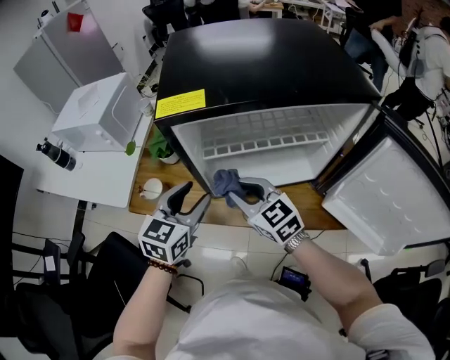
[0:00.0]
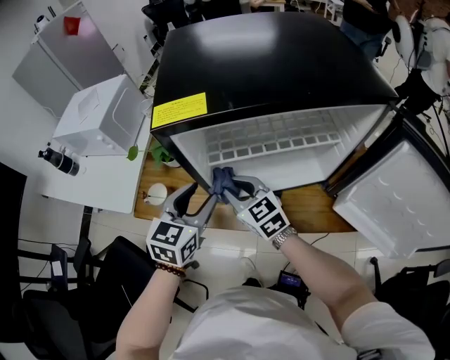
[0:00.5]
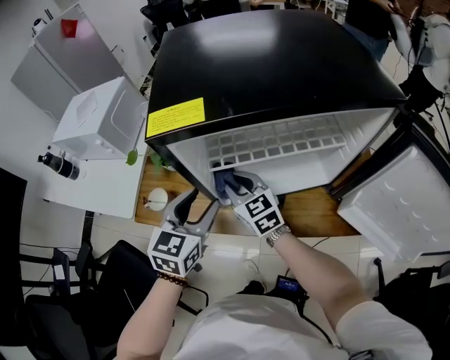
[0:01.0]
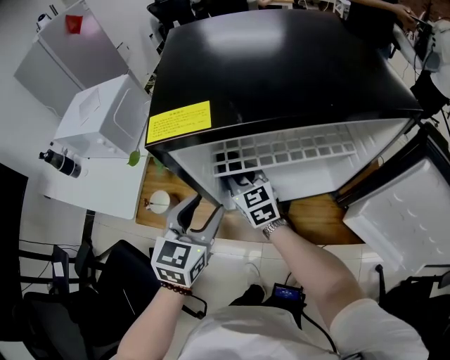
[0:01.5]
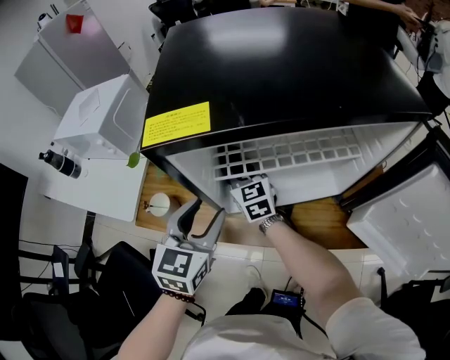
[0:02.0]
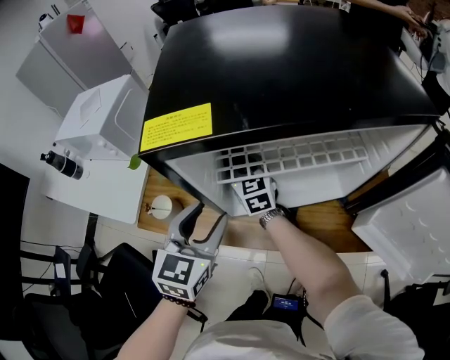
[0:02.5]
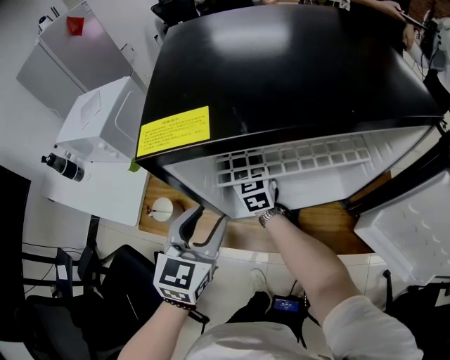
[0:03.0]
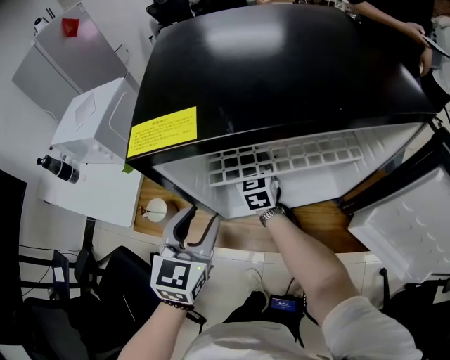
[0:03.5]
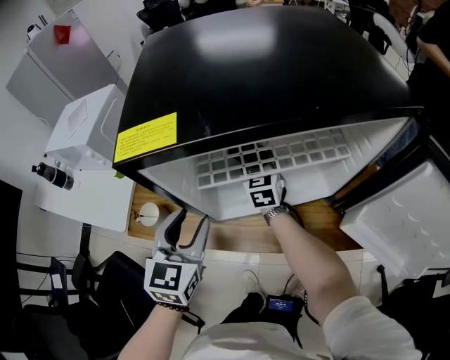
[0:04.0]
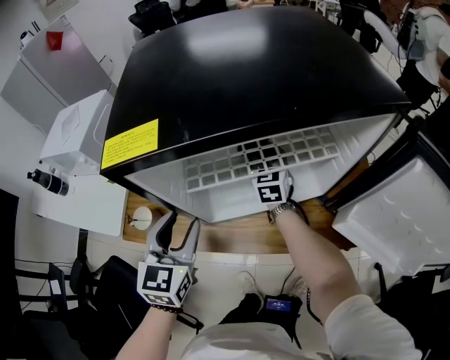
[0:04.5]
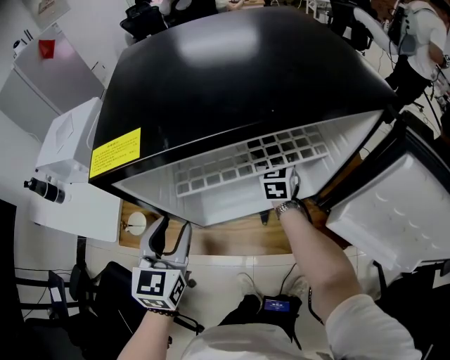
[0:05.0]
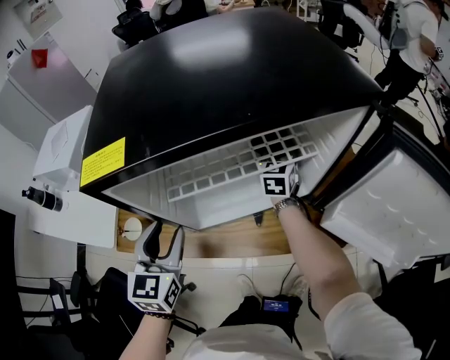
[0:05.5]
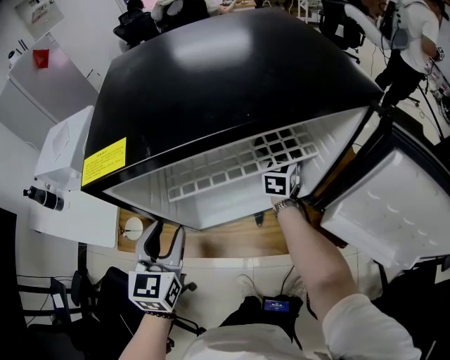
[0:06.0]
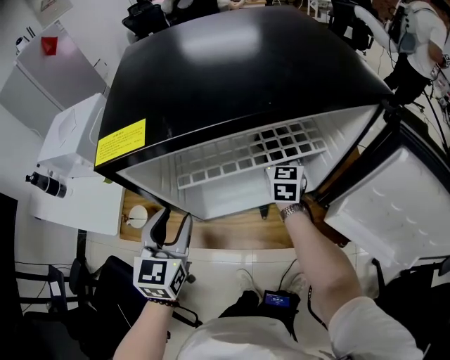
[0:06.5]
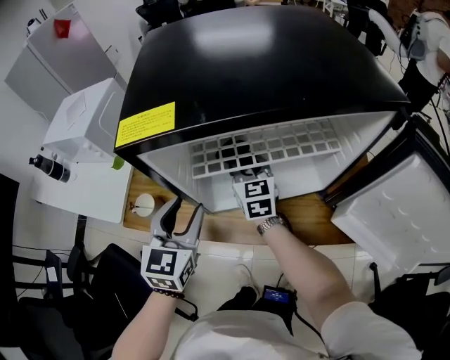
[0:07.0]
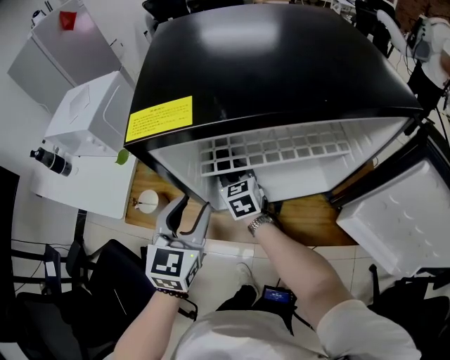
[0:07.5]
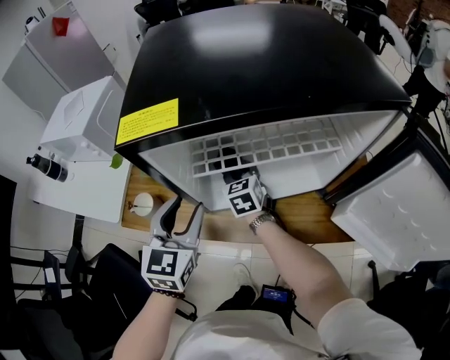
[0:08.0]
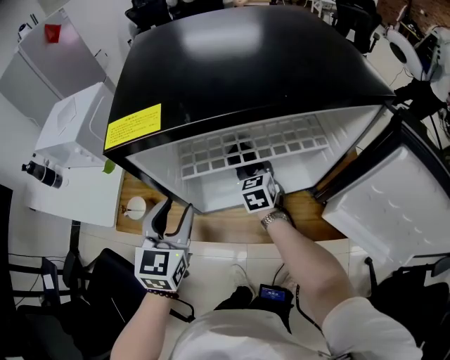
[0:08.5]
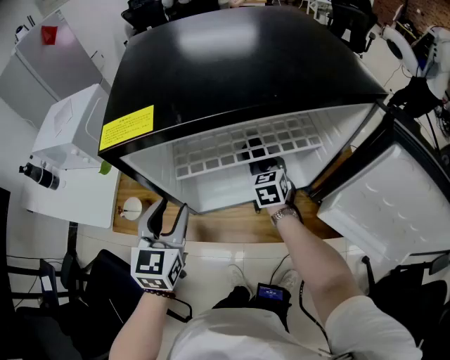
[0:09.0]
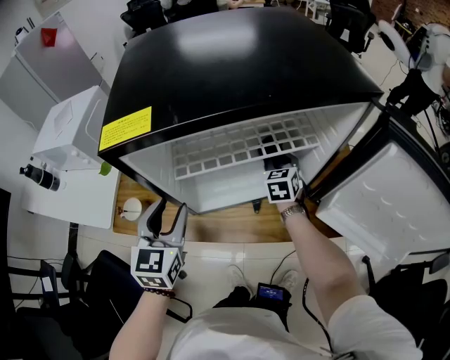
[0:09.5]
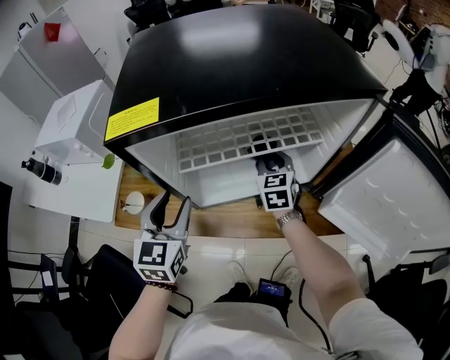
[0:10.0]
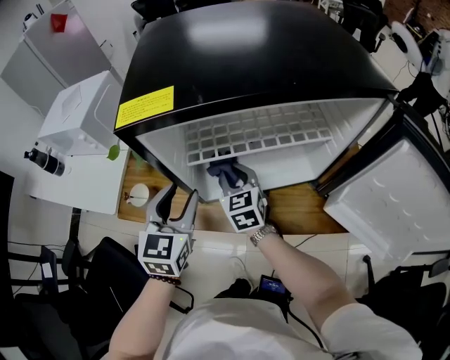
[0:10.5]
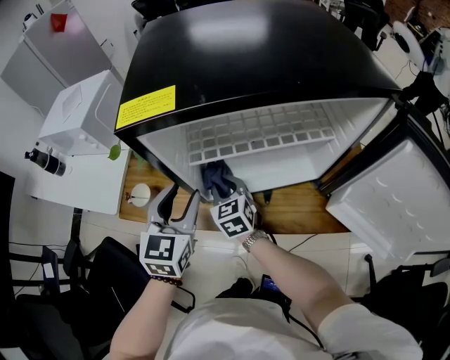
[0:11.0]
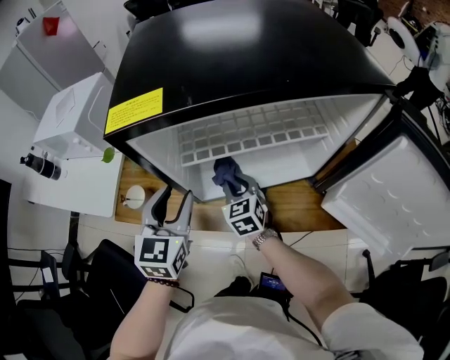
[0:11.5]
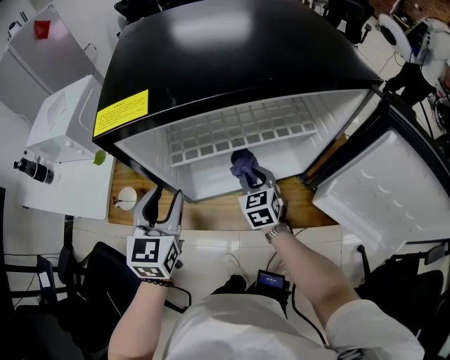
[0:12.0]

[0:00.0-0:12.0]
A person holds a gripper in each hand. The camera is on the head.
0:00.0 to 0:02.0: The right gripper shifts approximately 20 cm forward and downward.
0:02.0 to 0:04.0: The right gripper moves to the right and forward, roughly 10 cm.
0:04.0 to 0:06.0: The right gripper travels to the right by approximately 20 cm, and turns by roughly 20 degrees.
0:06.0 to 0:08.0: The right gripper moves to the left, approximately 20 cm, and changes its angle by roughly 30 degrees.
0:08.0 to 0:10.0: The right gripper travels to the right by about 15 cm.
0:10.0 to 0:12.0: The right gripper is displaced backward by roughly 5 cm, and goes to the left and returns, some 20 cm each way.

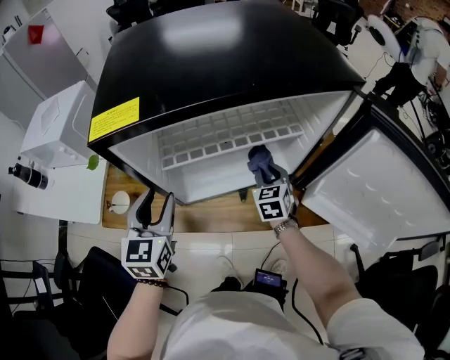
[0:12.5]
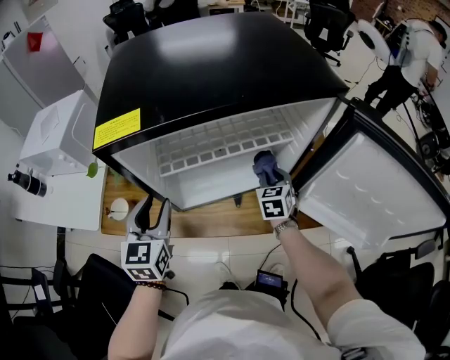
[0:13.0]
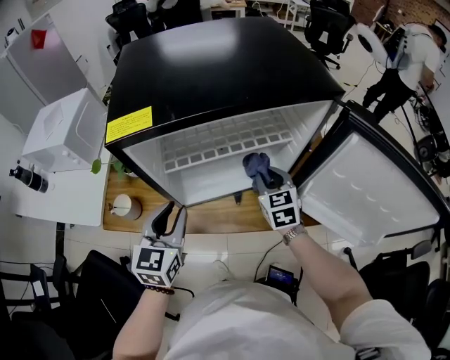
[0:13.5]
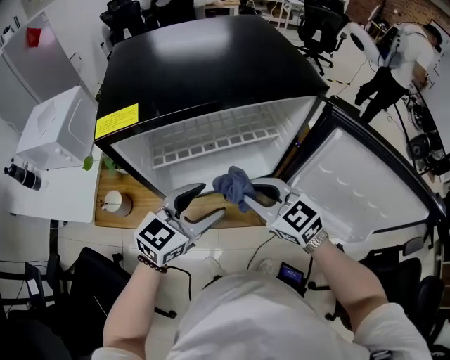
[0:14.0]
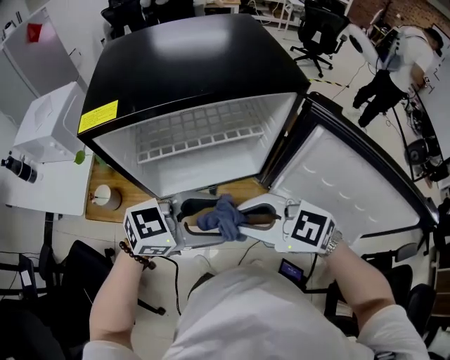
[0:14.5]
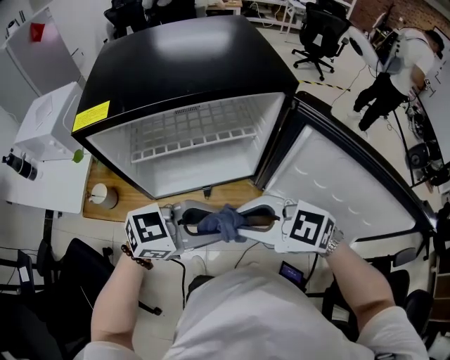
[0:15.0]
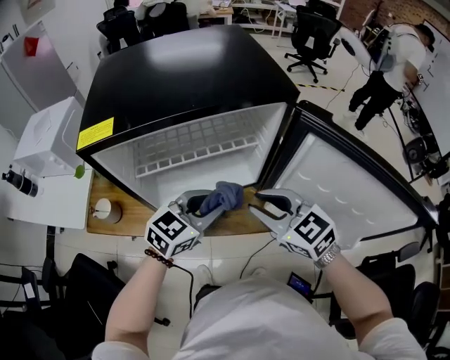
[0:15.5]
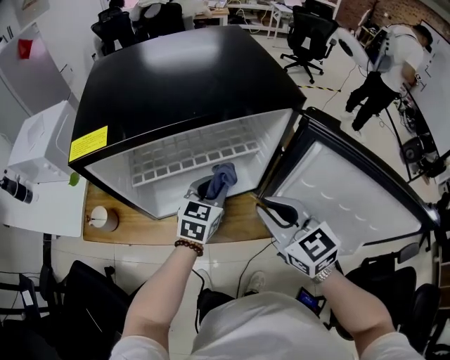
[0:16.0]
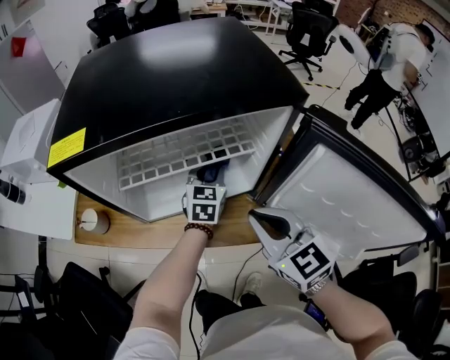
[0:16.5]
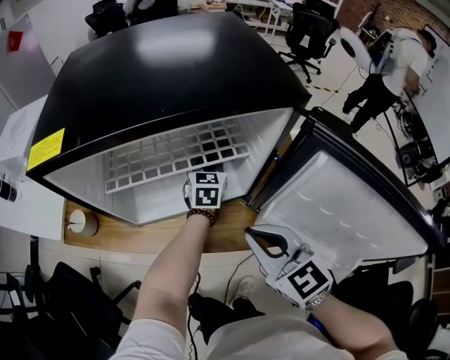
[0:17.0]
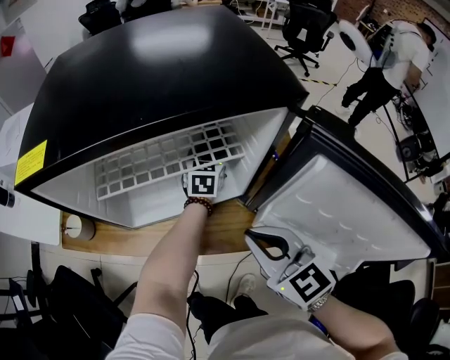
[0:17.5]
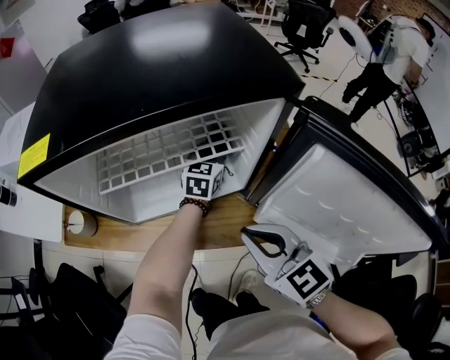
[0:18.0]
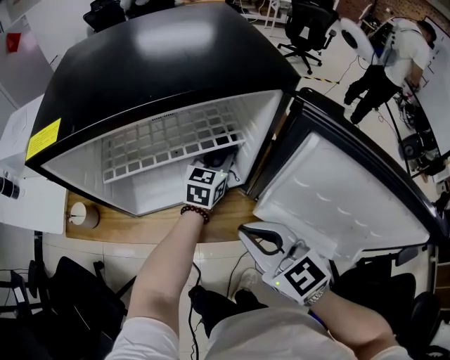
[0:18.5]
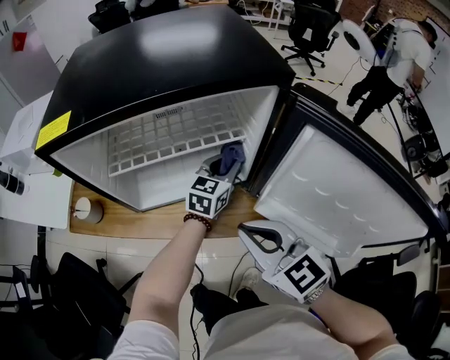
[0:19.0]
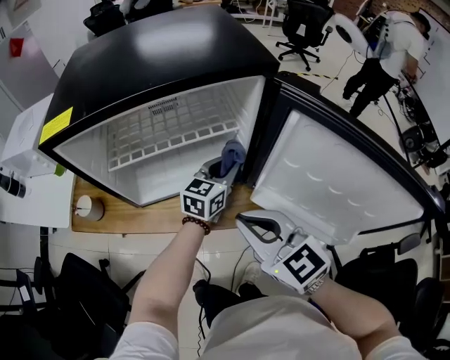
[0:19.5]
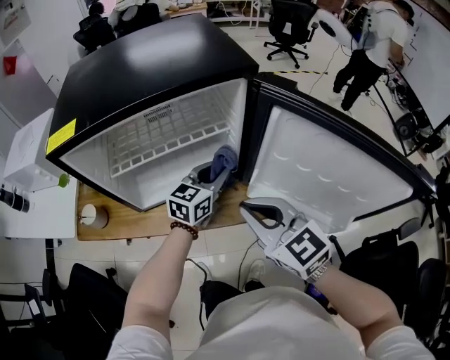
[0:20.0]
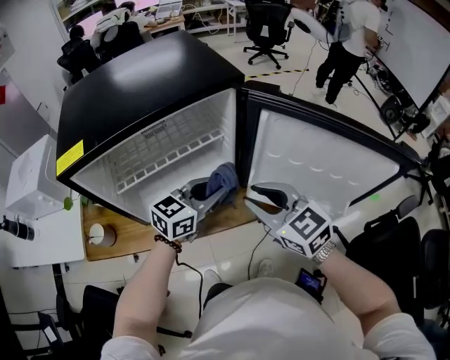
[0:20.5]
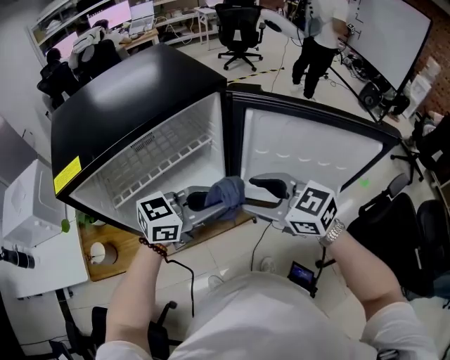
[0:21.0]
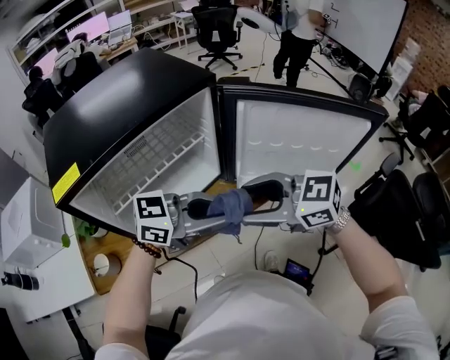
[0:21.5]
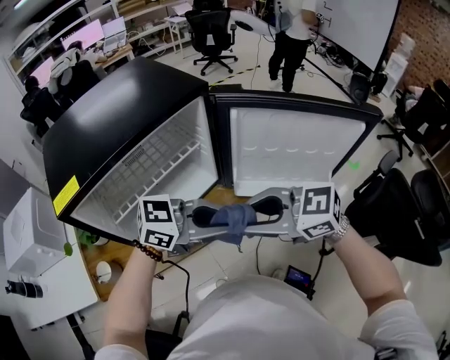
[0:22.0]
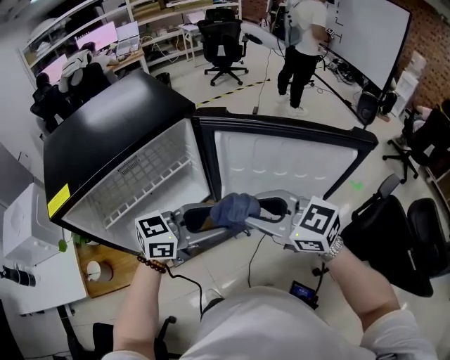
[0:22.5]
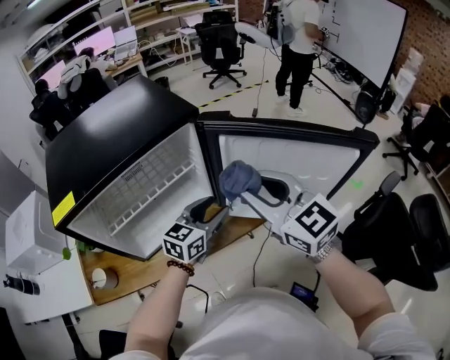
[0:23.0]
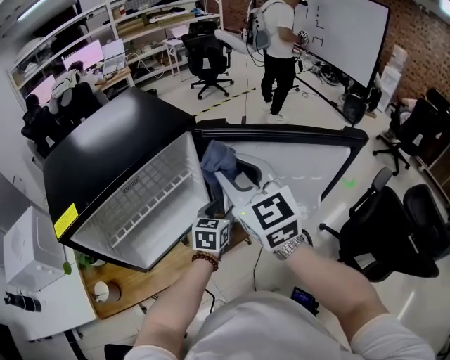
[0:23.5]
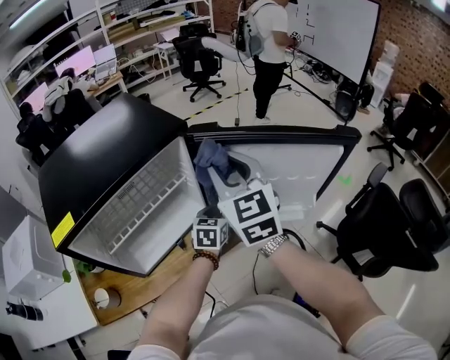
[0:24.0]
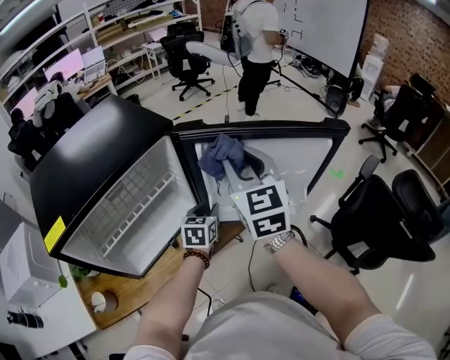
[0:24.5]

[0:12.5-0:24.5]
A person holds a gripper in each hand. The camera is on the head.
0:12.5 to 0:14.5: The left gripper moves roughly 25 cm, rotates approximately 70 degrees, and opens up. Meanwhile the right gripper shifts by about 30 cm, and changes its angle by about 70 degrees.
0:14.5 to 0:16.5: The left gripper moves about 30 cm, rotates approximately 60 degrees, and closes, while the right gripper changes place by approximately 10 cm, and changes its angle by roughly 40 degrees.
0:16.5 to 0:18.5: The left gripper travels to the right by roughly 5 cm, and goes forward and returns, some 10 cm each way.
0:18.5 to 0:20.5: The right gripper opens its fingers. The left gripper heads backward and upward, covering about 20 cm, and turns by roughly 30 degrees.
0:20.5 to 0:22.5: The left gripper changes place by some 10 cm, changes its angle by approximately 30 degrees, and opens up. The right gripper shifts by some 10 cm, and opens, then closes again.
0:22.5 to 0:24.5: The right gripper shifts by some 15 cm, and changes its angle by approximately 50 degrees, while the left gripper heads downward, covering about 15 cm, swivels about 40 degrees, and closes.

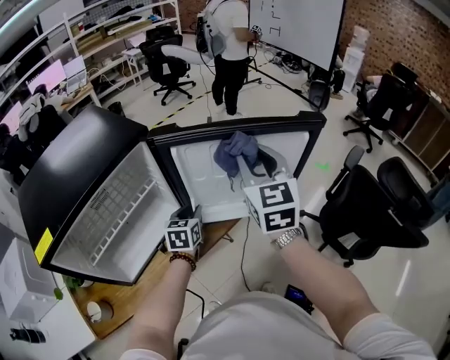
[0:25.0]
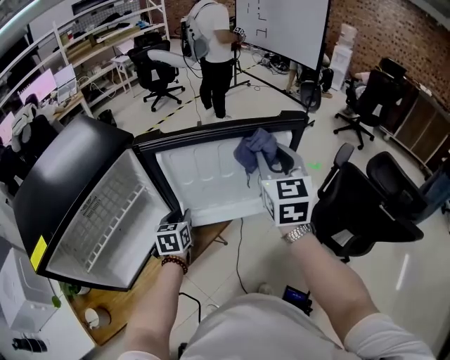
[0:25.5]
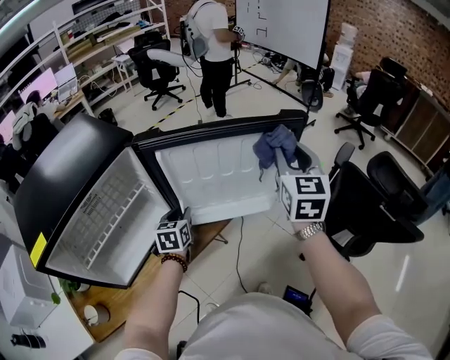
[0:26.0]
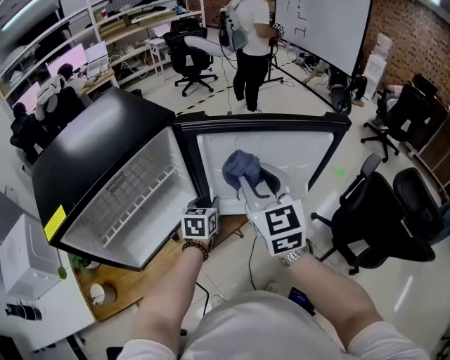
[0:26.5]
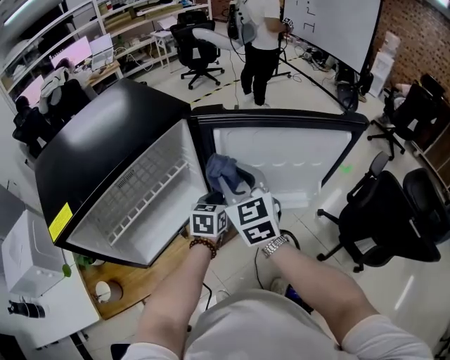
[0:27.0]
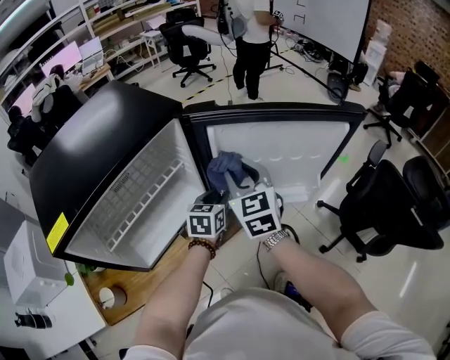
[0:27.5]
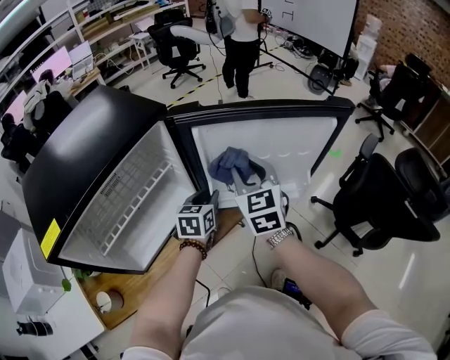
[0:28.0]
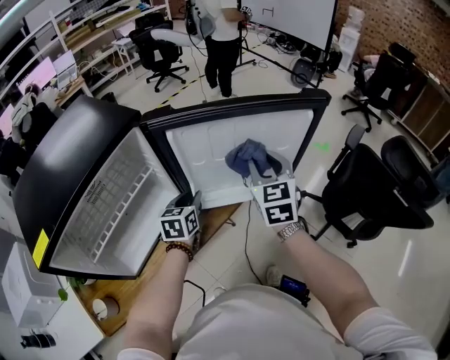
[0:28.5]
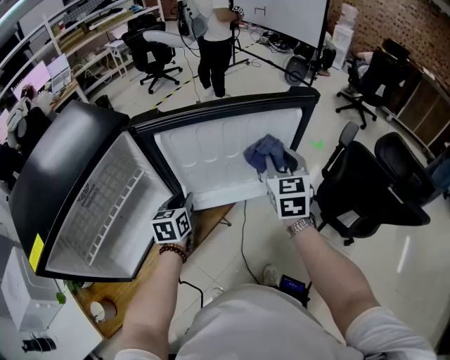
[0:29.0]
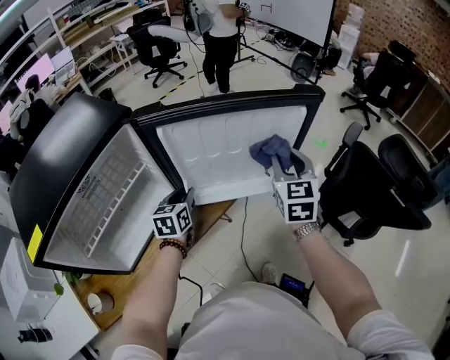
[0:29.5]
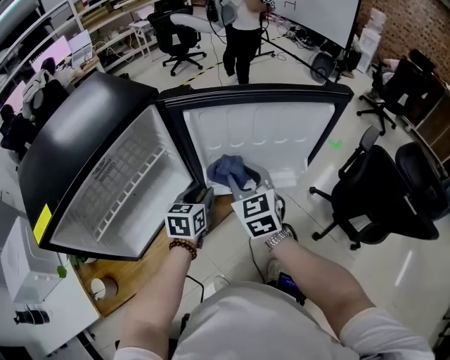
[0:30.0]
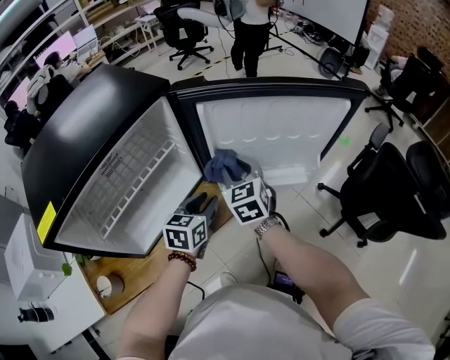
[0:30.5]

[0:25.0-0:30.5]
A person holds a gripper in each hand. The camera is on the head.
0:25.0 to 0:27.0: The right gripper heads to the left and downward, covering about 15 cm.
0:27.0 to 0:28.5: The right gripper moves to the right, roughly 20 cm, and changes its angle by about 20 degrees.
0:28.5 to 0:30.5: The right gripper travels to the left and downward by some 20 cm. The left gripper shifts about 10 cm backward.
